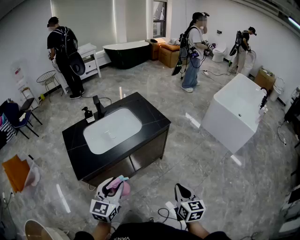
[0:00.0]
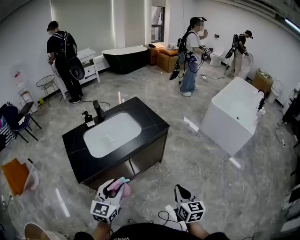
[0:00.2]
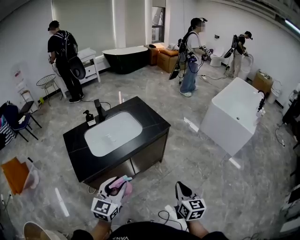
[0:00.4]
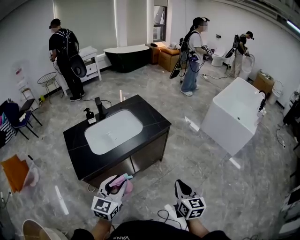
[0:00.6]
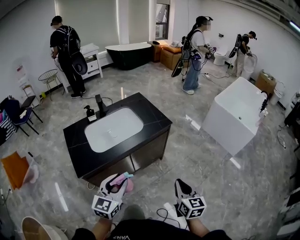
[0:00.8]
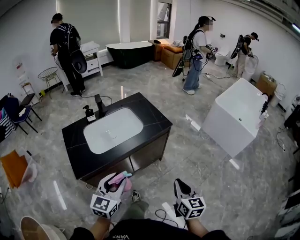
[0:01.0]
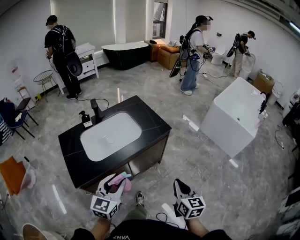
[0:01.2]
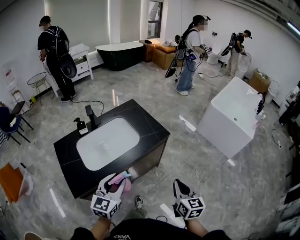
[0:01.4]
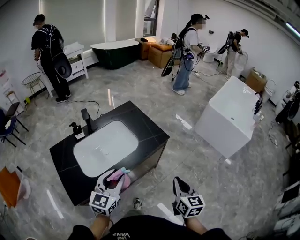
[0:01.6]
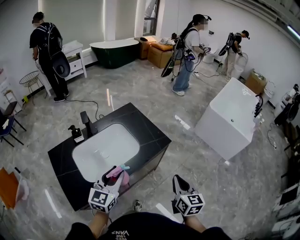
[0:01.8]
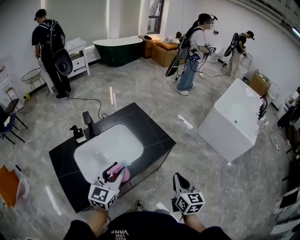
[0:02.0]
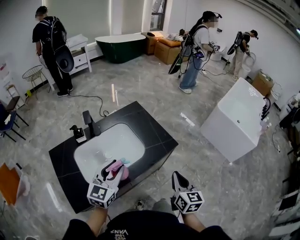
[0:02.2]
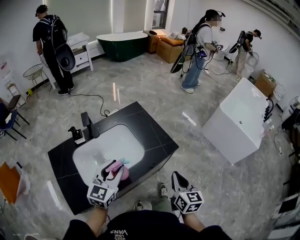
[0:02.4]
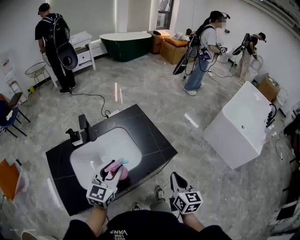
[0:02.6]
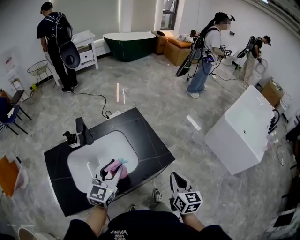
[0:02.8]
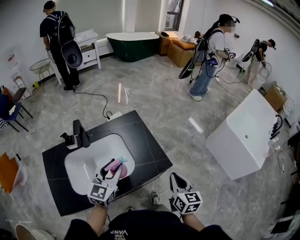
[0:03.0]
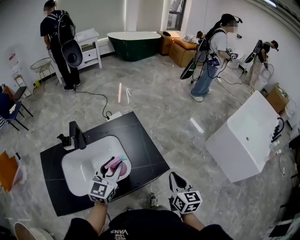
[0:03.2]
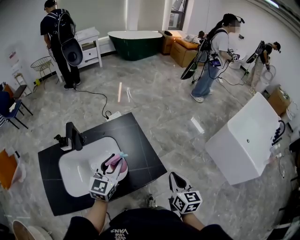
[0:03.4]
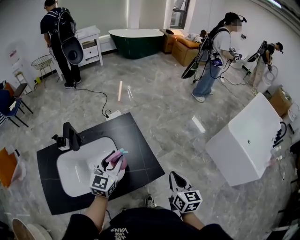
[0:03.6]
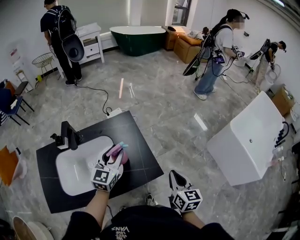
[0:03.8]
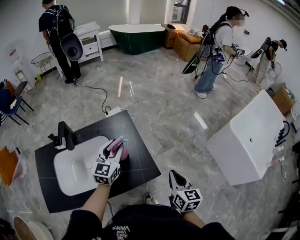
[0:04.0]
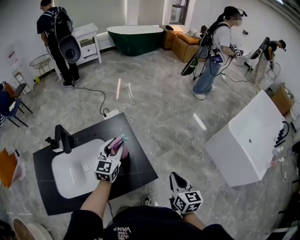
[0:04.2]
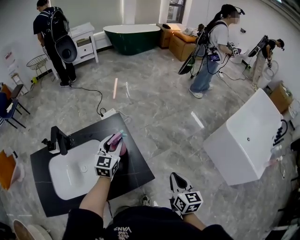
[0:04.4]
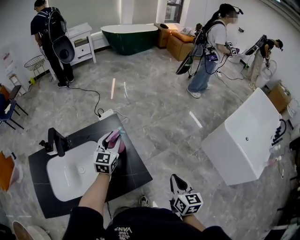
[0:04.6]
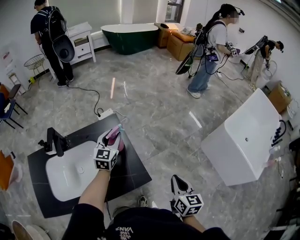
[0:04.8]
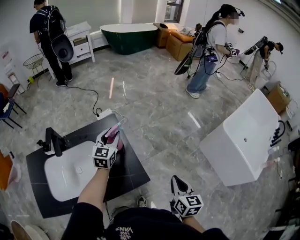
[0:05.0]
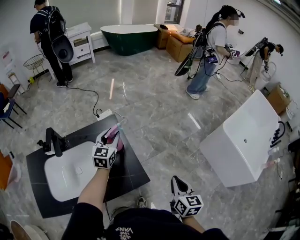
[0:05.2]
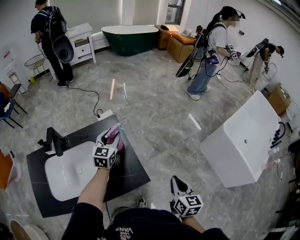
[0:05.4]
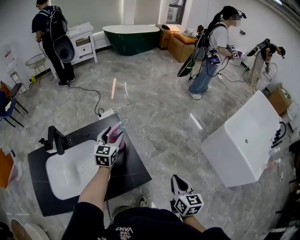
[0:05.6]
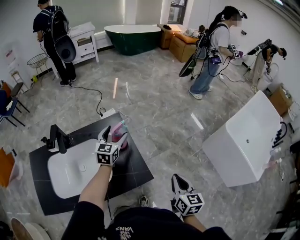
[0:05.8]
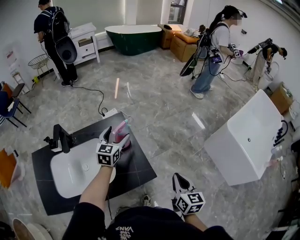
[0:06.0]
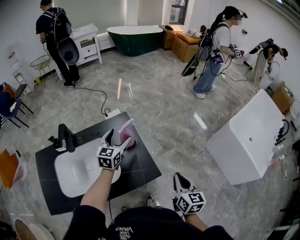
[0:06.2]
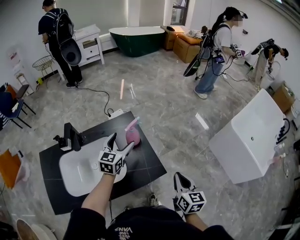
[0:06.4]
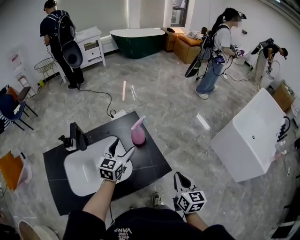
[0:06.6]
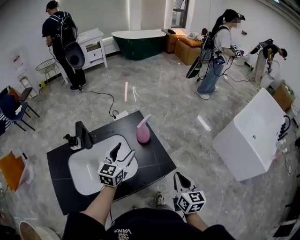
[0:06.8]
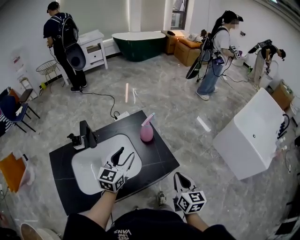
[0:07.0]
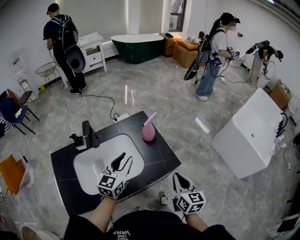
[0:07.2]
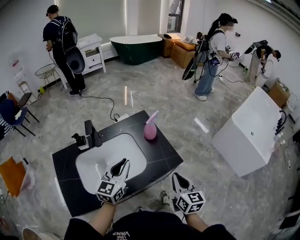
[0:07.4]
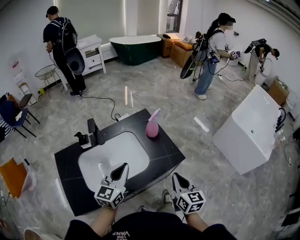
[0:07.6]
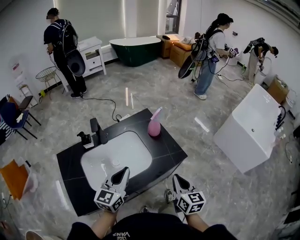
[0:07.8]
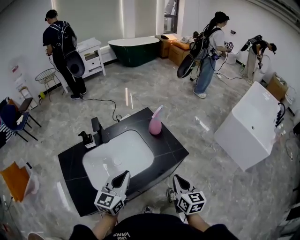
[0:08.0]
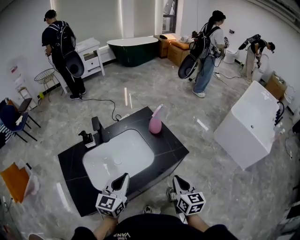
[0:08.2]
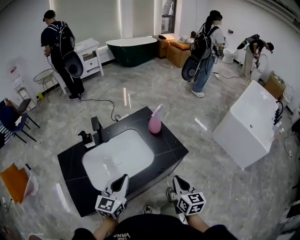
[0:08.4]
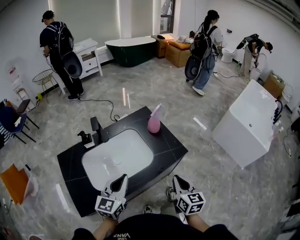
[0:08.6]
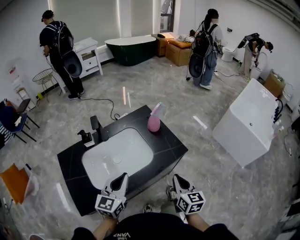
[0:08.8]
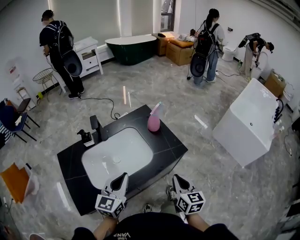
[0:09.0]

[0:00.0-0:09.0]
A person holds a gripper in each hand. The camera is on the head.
0:00.0 to 0:01.6: The grippers both shift forward by about 15 cm.
0:01.6 to 0:03.0: The two grippers go about 25 cm forward.
0:03.0 to 0:04.4: The left gripper goes approximately 25 cm forward and to the right, while the right gripper is displaced to the right and forward by about 15 cm.
0:04.4 to 0:06.0: The left gripper opens its fingers.
0:06.0 to 0:07.6: The right gripper travels to the left and backward by some 25 cm. Meanwhile the left gripper moves backward and to the left, about 30 cm, and closes.
0:07.6 to 0:09.0: Both grippers travel together backward, about 5 cm.

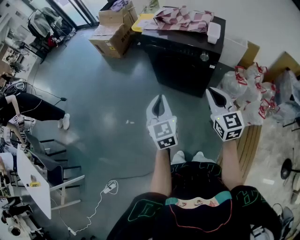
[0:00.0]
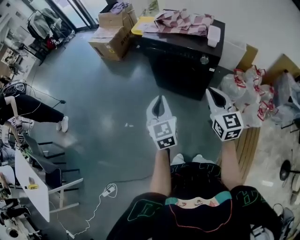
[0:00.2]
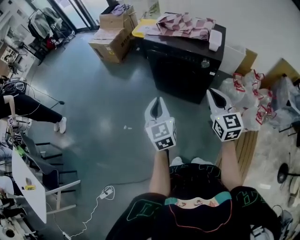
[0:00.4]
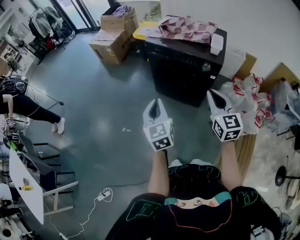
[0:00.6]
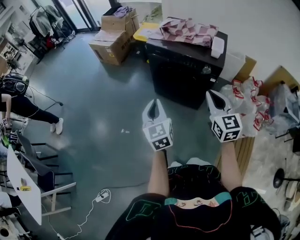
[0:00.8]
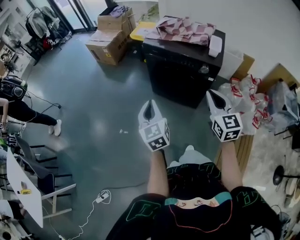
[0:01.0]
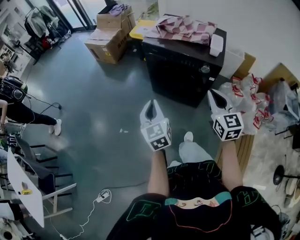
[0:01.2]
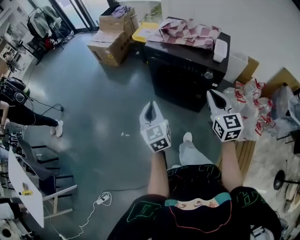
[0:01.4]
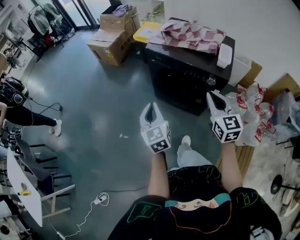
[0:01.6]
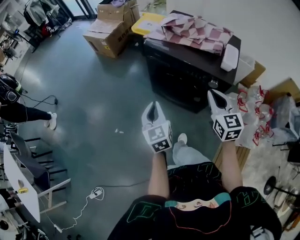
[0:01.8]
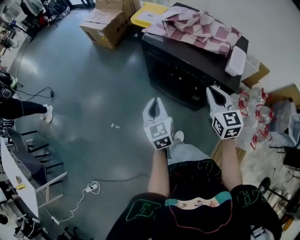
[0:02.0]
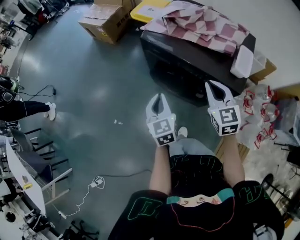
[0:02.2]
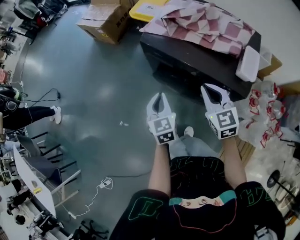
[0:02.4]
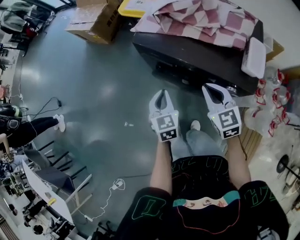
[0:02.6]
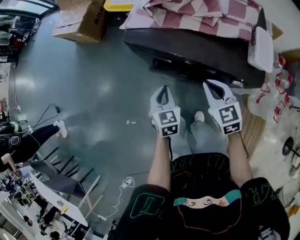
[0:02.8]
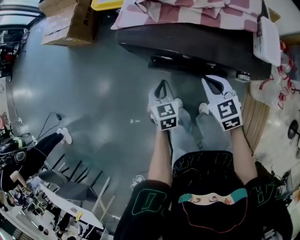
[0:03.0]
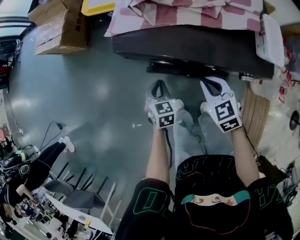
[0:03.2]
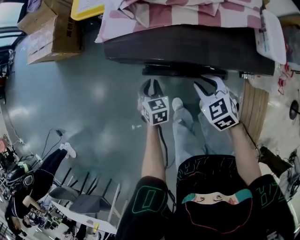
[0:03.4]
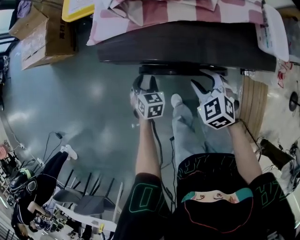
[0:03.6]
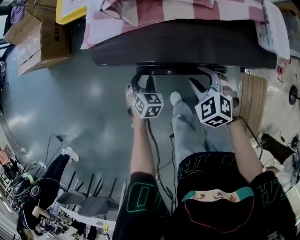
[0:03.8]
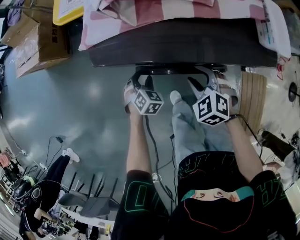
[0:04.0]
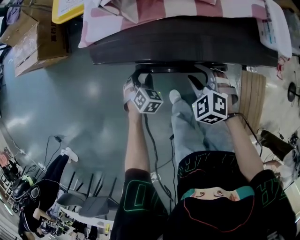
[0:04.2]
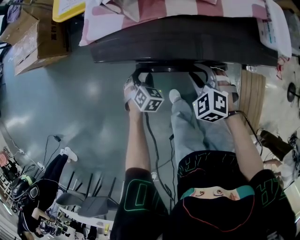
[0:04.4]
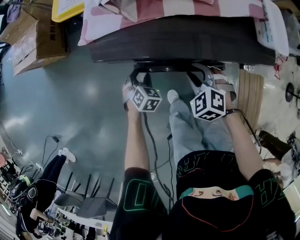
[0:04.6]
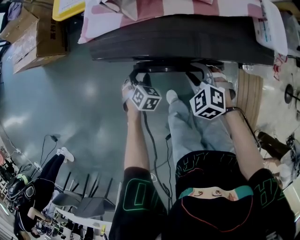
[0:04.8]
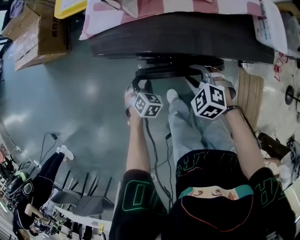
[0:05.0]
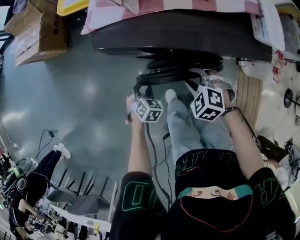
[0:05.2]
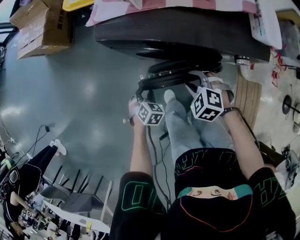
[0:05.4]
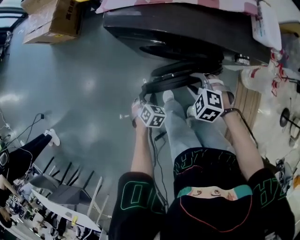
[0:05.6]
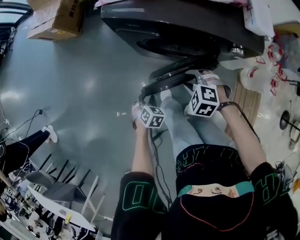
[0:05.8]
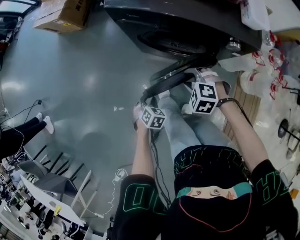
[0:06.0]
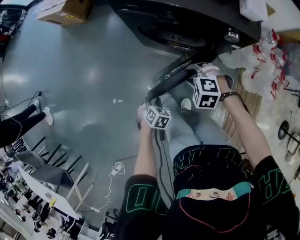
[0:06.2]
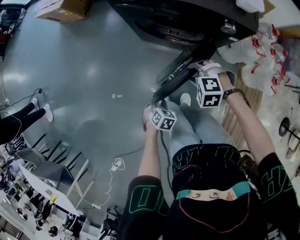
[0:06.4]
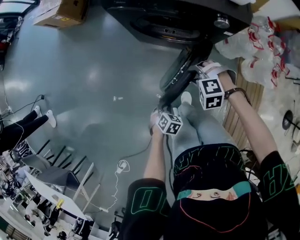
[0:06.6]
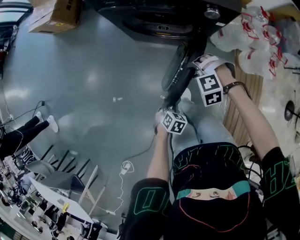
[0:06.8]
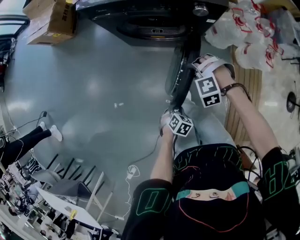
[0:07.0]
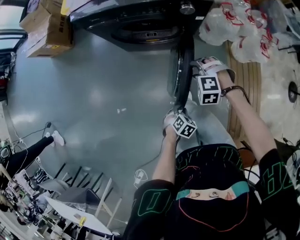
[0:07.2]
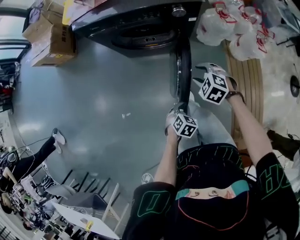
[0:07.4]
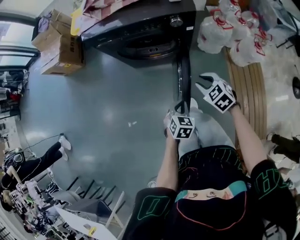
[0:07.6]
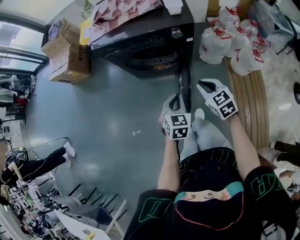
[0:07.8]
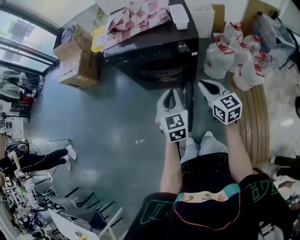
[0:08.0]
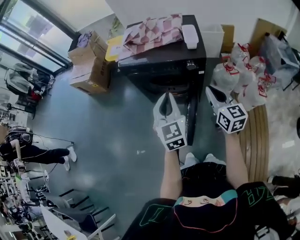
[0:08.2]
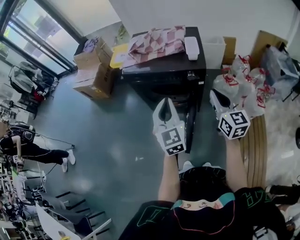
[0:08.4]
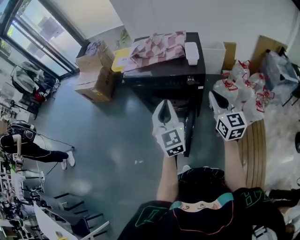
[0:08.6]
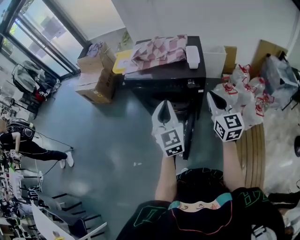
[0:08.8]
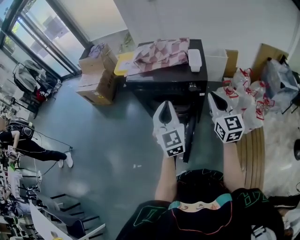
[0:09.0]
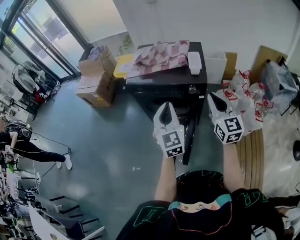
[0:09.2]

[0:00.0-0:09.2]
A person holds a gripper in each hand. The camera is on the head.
0:00.0 to 0:01.6: Both grippers travel together forward, roughly 15 cm.
0:01.6 to 0:03.0: Both grippers move forward and downward, some 35 cm. The right gripper rotates roughly 30 degrees. The left gripper turns by roughly 40 degrees.
0:03.0 to 0:04.6: The left gripper moves downward and forward, some 15 cm, turns by roughly 40 degrees, and opens up; the right gripper is displaced downward by roughly 10 cm, turns by some 30 degrees, and opens.
0:04.6 to 0:06.2: The right gripper changes place by roughly 20 cm, and changes its angle by some 40 degrees, while the left gripper changes place by roughly 35 cm, and turns by roughly 20 degrees.
0:06.2 to 0:07.6: The left gripper ends up roughly 25 cm from where it was, and turns by roughly 20 degrees, while the right gripper ends up some 20 cm from where it was, and rolls clockwise, seen from behind, by some 50 degrees.
0:07.6 to 0:09.2: The grippers both shift upward by some 35 cm. The right gripper angles its fingers upward, by roughly 50 degrees, and closes up; the left gripper angles its fingers upward, by some 50 degrees.

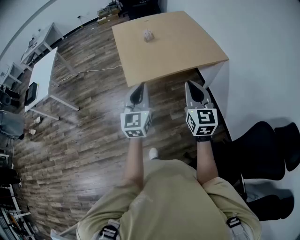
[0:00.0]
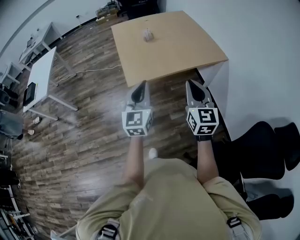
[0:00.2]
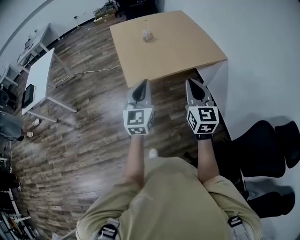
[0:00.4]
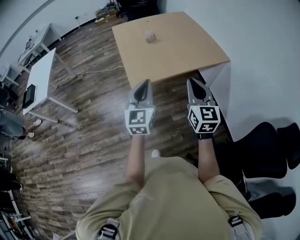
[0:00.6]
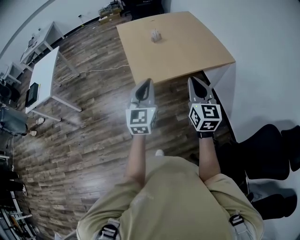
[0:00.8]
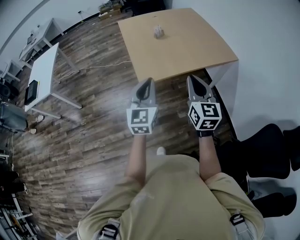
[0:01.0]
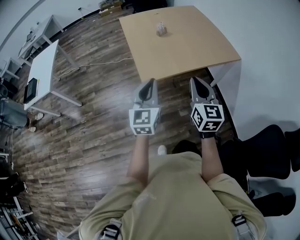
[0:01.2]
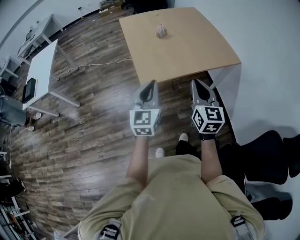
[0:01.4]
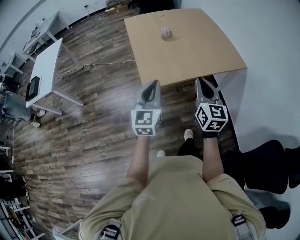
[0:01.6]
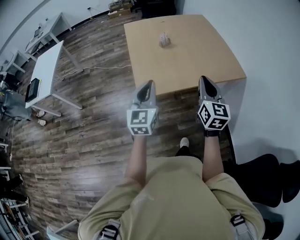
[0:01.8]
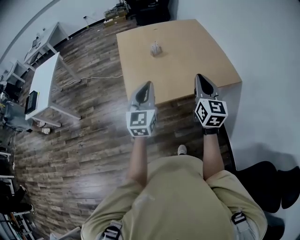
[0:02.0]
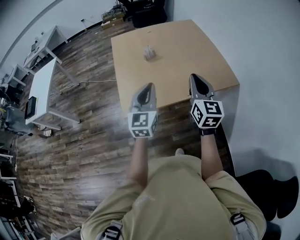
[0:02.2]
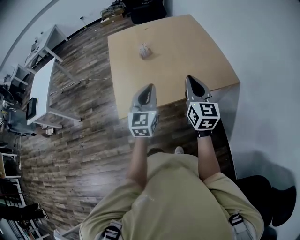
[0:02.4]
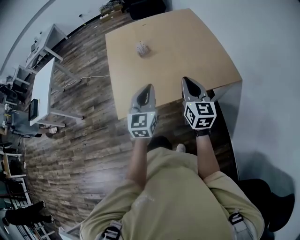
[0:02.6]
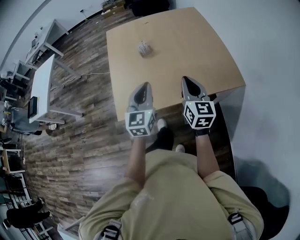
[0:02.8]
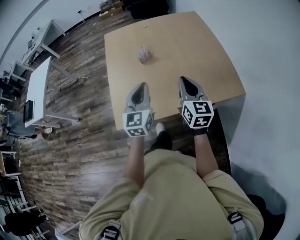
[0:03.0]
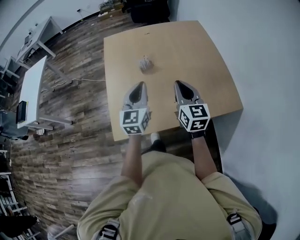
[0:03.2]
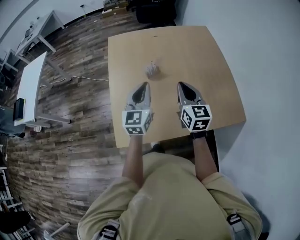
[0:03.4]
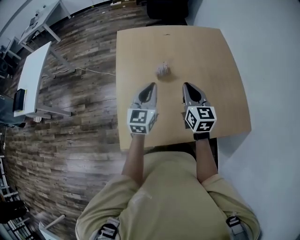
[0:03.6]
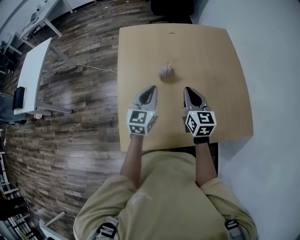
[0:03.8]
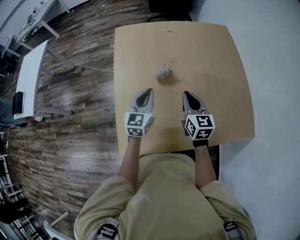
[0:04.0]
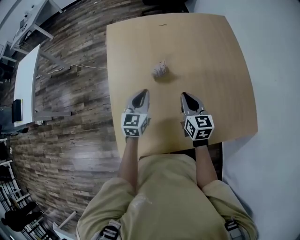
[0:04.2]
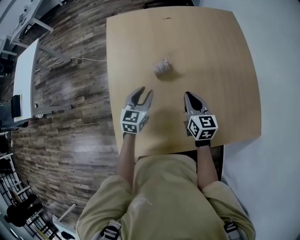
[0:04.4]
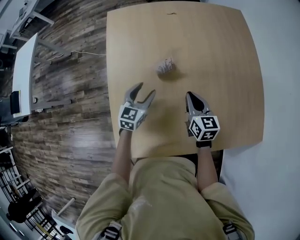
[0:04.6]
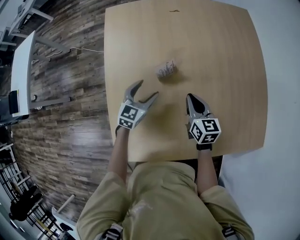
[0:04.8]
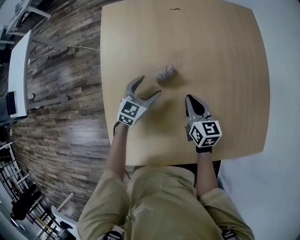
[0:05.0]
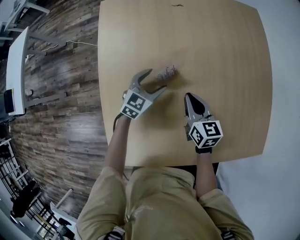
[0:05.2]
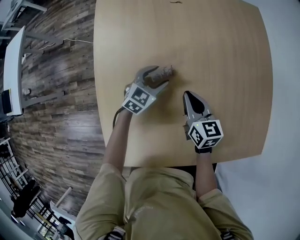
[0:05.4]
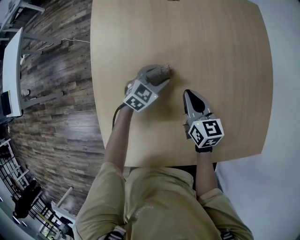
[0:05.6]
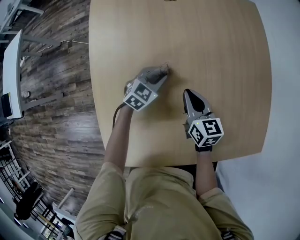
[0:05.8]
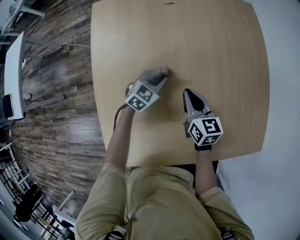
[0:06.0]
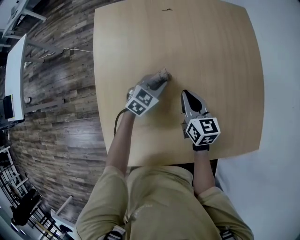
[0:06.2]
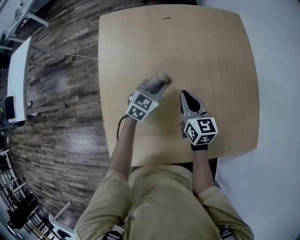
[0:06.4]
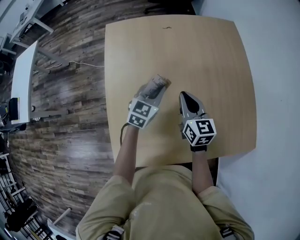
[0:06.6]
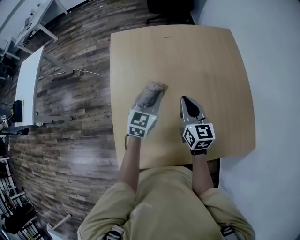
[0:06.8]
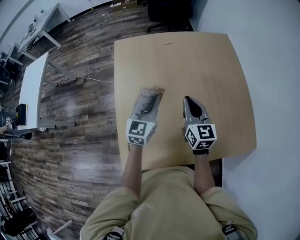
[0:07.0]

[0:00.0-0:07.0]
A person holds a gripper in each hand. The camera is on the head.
0:00.0 to 0:01.4: The two grippers go some 15 cm to the left and forward.
0:01.4 to 0:02.8: Both grippers move forward and to the right, some 40 cm.
0:02.8 to 0:04.2: Both grippers travel together forward and downward, about 35 cm.
0:04.2 to 0:05.6: Both grippers move downward and forward, some 20 cm. The left gripper turns by about 40 degrees, and opens.
0:05.6 to 0:07.0: The left gripper travels upward and backward by roughly 30 cm, swivels approximately 40 degrees, and closes its fingers. Meanwhile the right gripper is displaced upward by approximately 20 cm, and swivels approximately 20 degrees.
